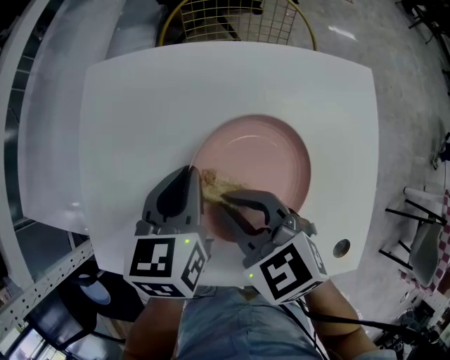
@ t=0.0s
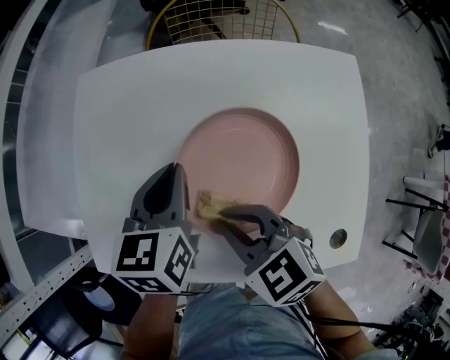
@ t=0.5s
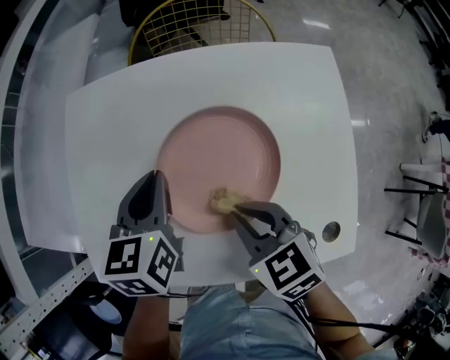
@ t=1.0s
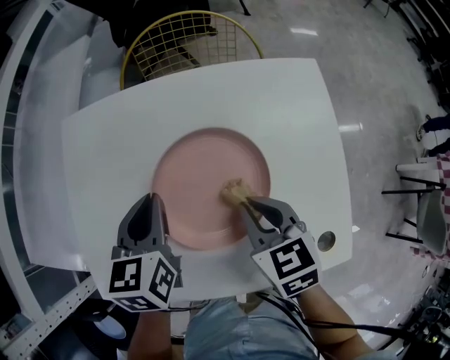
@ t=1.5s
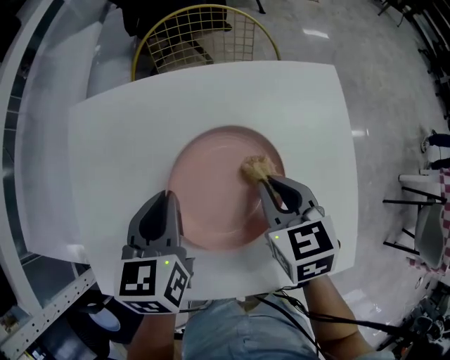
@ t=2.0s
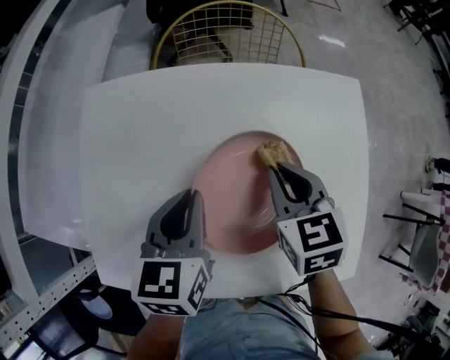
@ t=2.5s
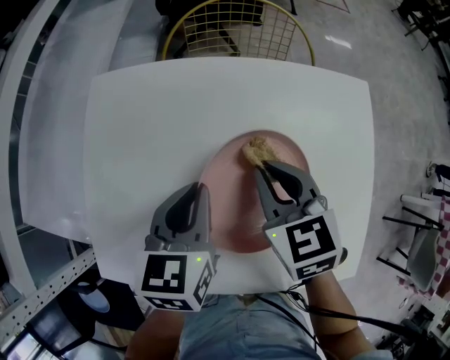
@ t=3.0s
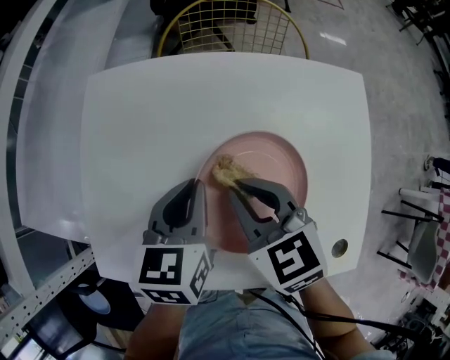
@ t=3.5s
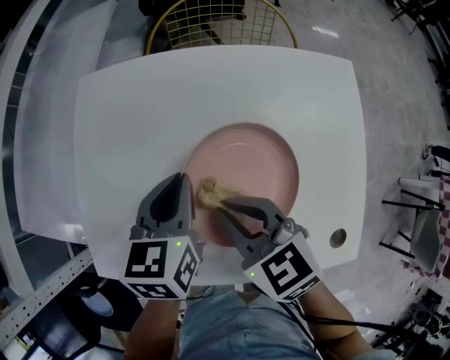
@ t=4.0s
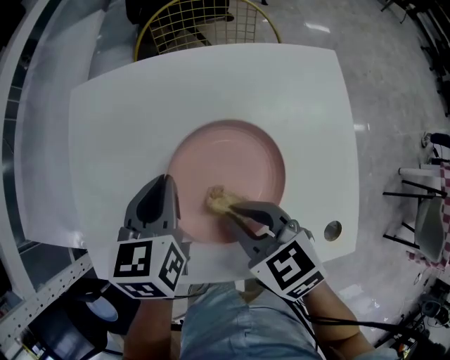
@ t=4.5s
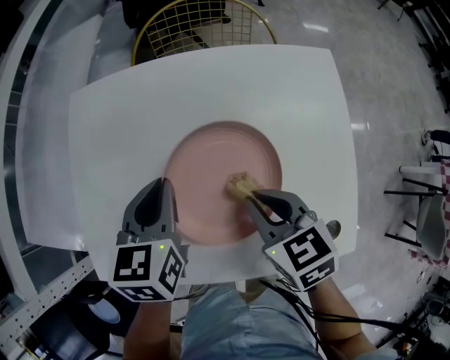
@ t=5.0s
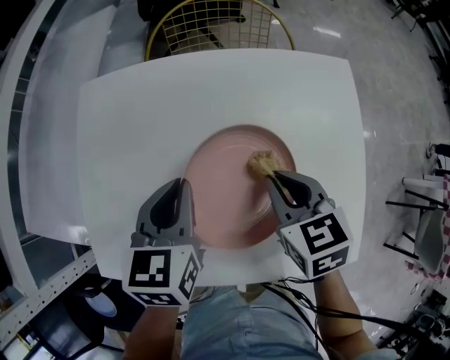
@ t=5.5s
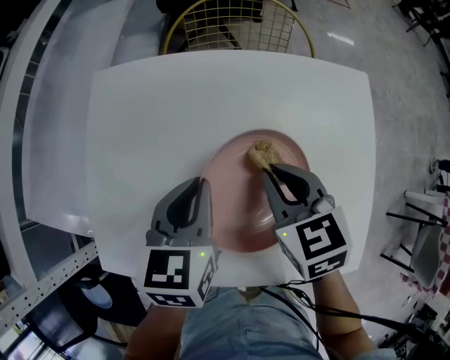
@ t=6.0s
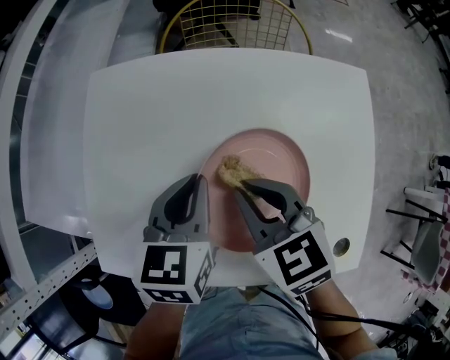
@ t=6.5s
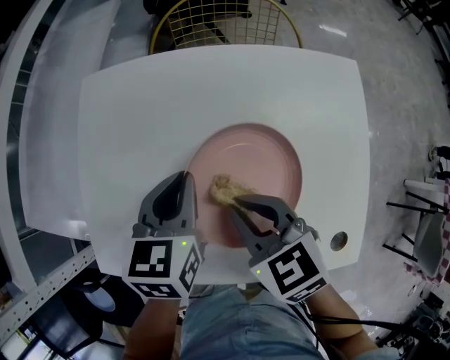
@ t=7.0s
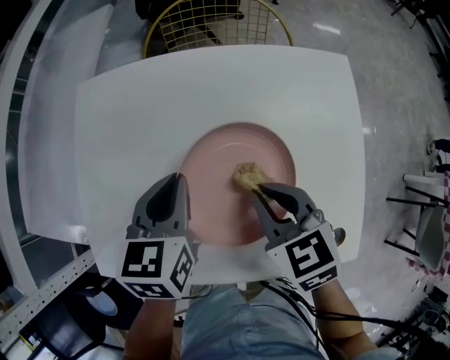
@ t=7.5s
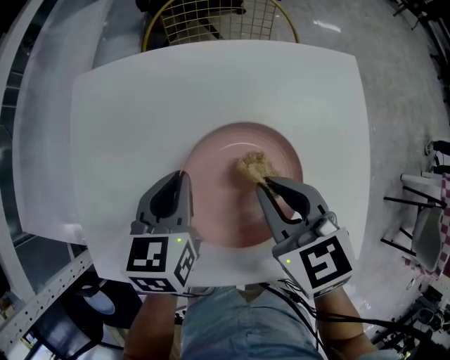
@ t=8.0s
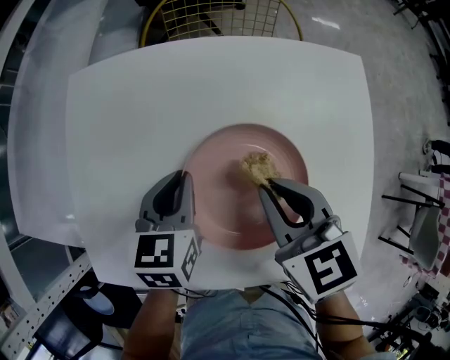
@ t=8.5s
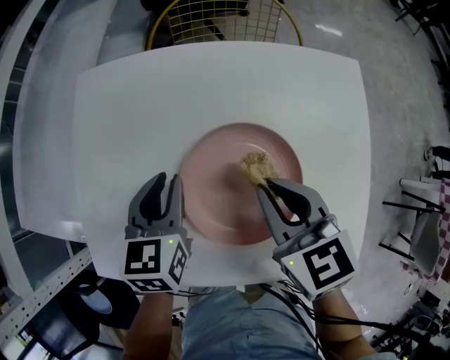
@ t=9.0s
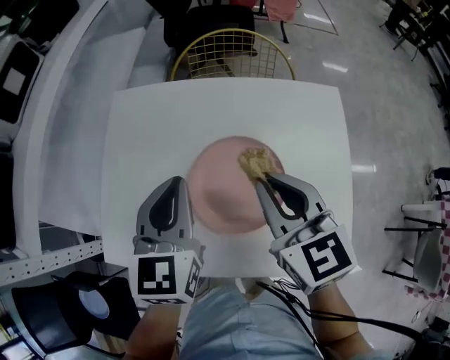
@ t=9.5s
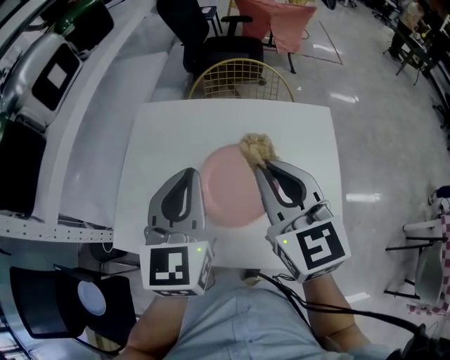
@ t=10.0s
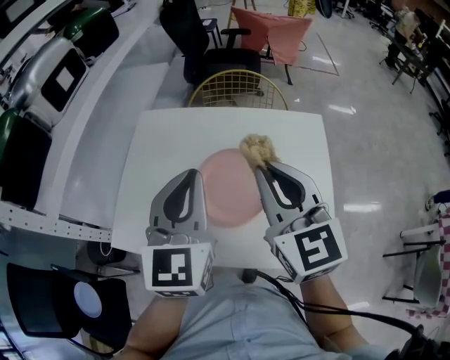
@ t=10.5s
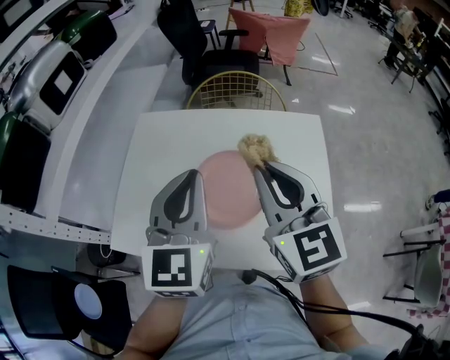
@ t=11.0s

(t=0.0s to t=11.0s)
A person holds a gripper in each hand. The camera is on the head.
t=0.0s - t=2.0s: The right gripper goes some 15 cm to the right, and swivels about 40 degrees.
t=2.0s - t=3.5s: The right gripper is displaced to the left by roughly 10 cm, and changes its angle by roughly 20 degrees.
t=3.5s - t=5.5s: The right gripper heads to the right, covering approximately 10 cm.
t=7.5s - t=9.0s: The left gripper shifts by roughly 5 cm.
t=9.0s - t=11.0s: The left gripper travels upward and backward by about 30 cm, and changes its angle by roughly 30 degrees; the right gripper is displaced upward by roughly 20 cm, and swivels roughly 30 degrees.

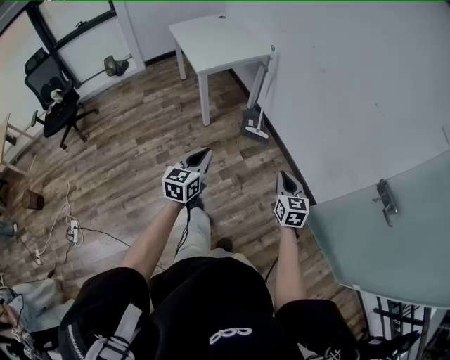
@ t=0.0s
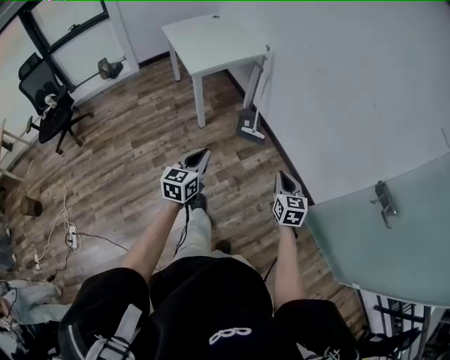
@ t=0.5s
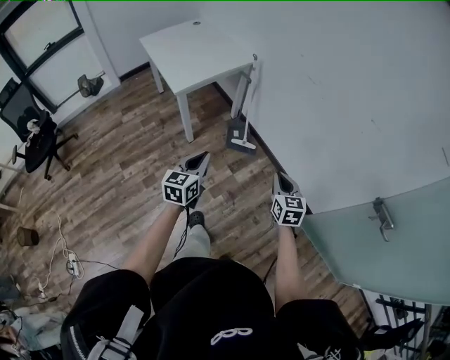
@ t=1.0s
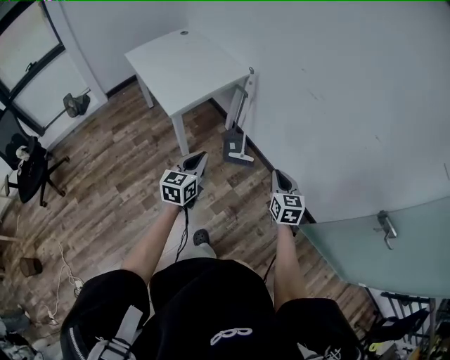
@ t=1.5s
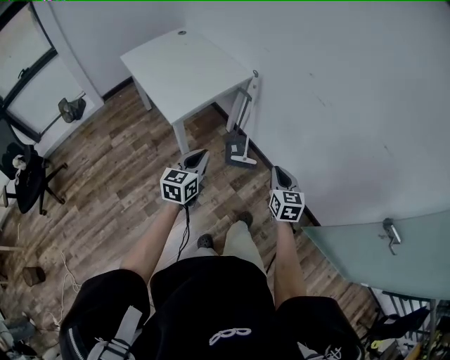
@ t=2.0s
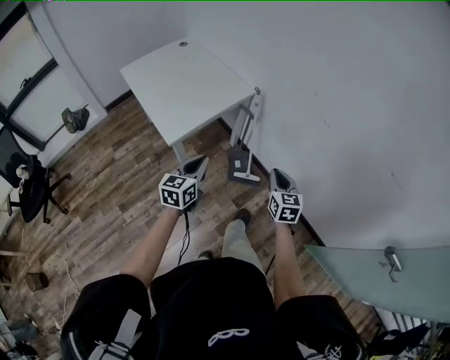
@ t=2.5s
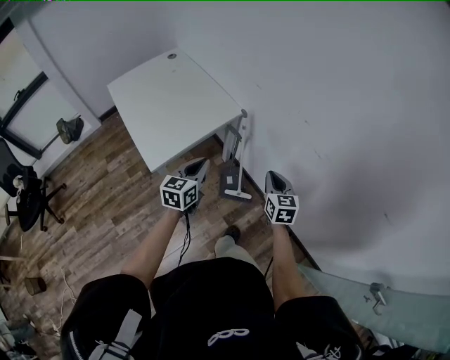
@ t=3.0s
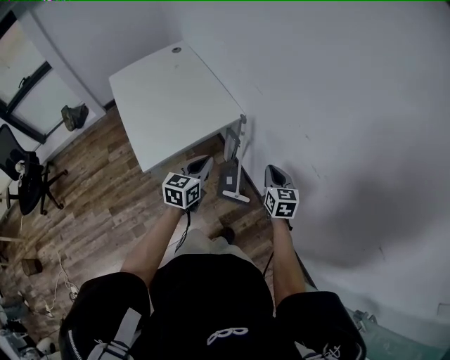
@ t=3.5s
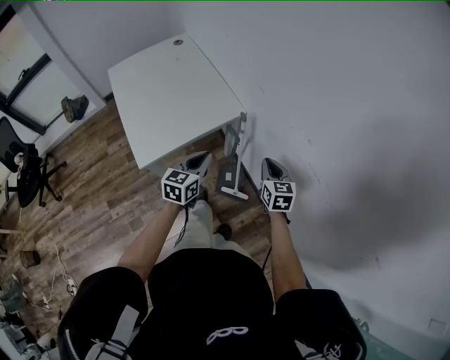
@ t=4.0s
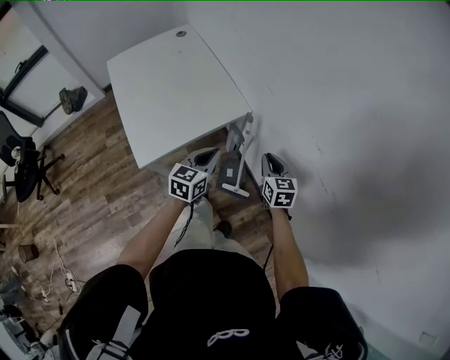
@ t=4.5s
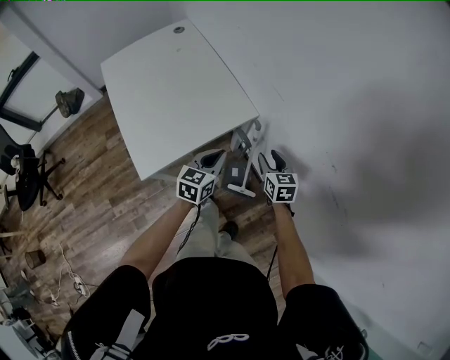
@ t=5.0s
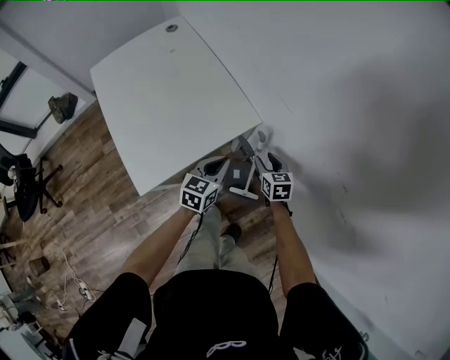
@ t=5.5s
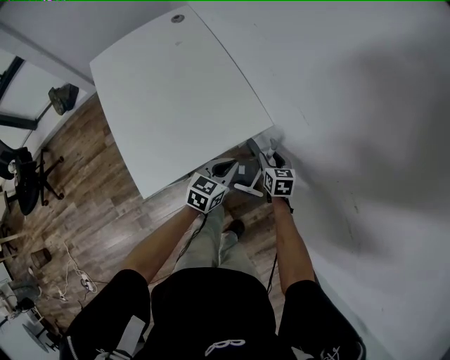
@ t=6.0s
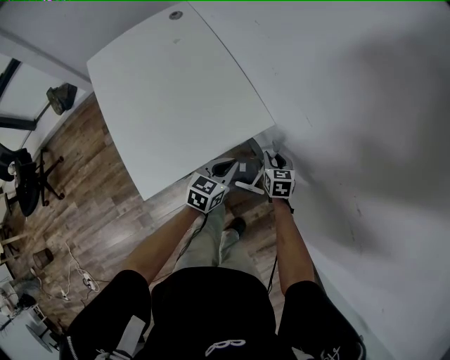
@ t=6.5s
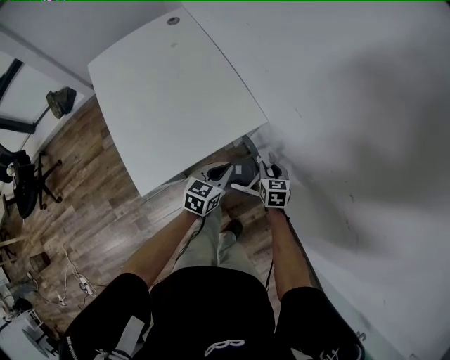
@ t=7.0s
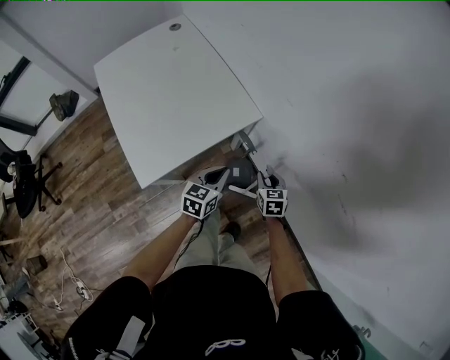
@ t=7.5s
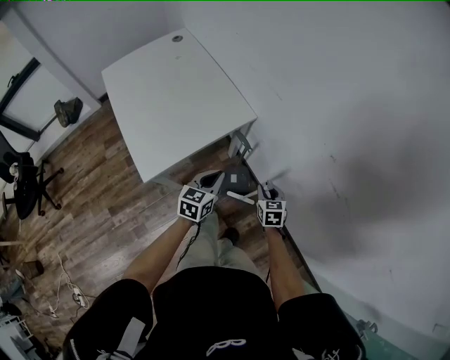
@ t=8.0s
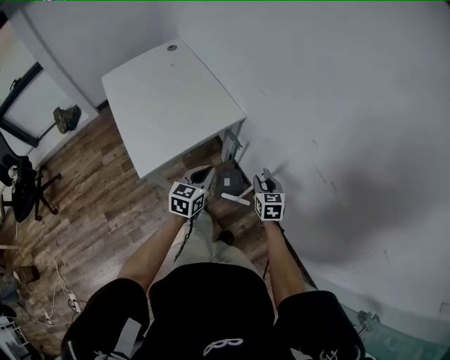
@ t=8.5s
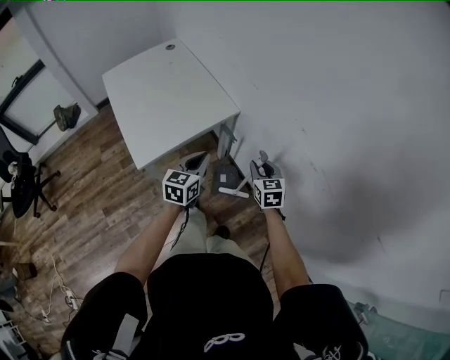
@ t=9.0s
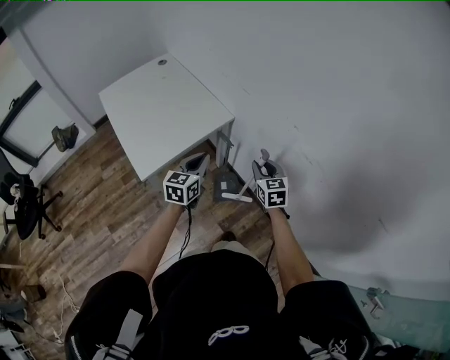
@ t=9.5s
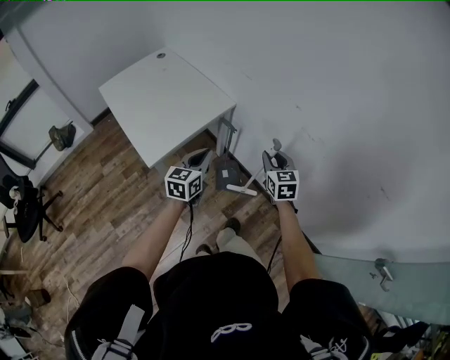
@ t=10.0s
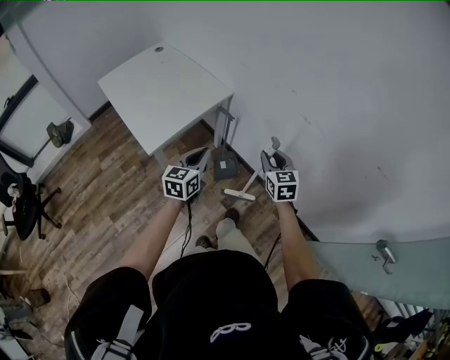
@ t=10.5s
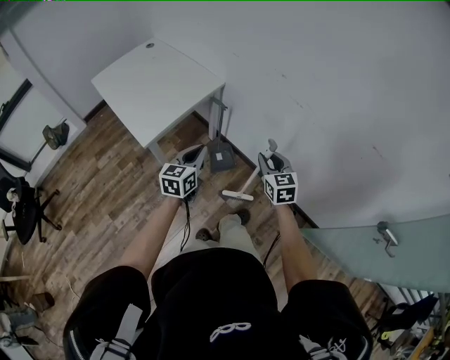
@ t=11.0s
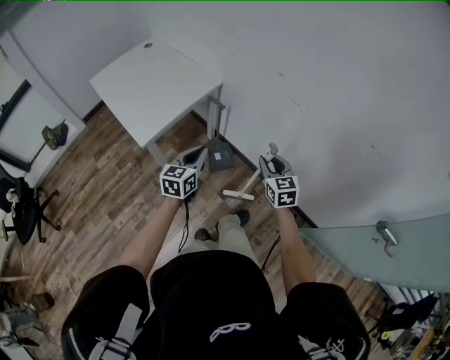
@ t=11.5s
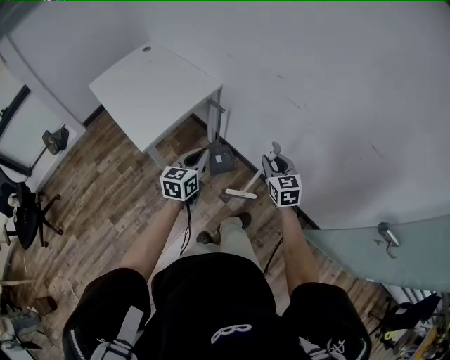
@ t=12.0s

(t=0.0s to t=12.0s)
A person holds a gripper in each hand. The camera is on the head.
t=0.0s - t=2.0s: The right gripper heads forward and to the left, covering about 35 cm. Meanwhile the left gripper goes about 40 cm forward.
t=2.0s - t=4.0s: The grippers both shift forward by approximately 40 cm.
t=4.0s - t=6.0s: The right gripper is displaced downward, forward and to the left by approximately 30 cm, and opens. Meanwhile the left gripper moves forward and downward, roughly 20 cm.
t=6.0s - t=8.0s: The left gripper is displaced backward by approximately 15 cm. Meanwhile the right gripper heads backward and to the right, covering about 20 cm.
t=8.0s - t=10.0s: The grippers both shift upward and backward by approximately 20 cm.
t=10.0s - t=12.0s: The left gripper goes about 10 cm backward, while the right gripper goes some 15 cm backward and to the right.

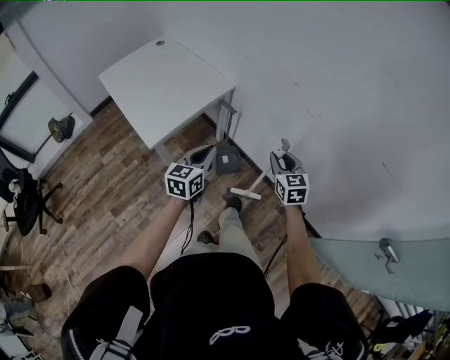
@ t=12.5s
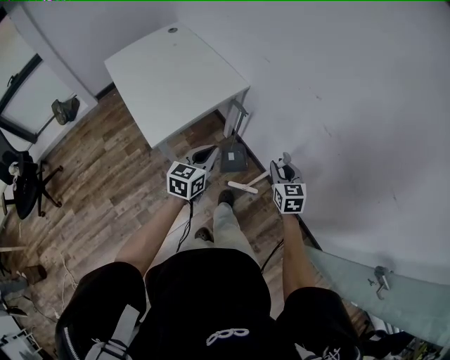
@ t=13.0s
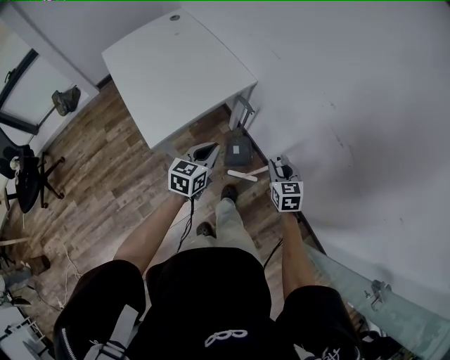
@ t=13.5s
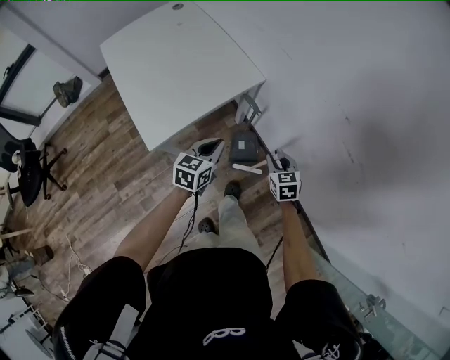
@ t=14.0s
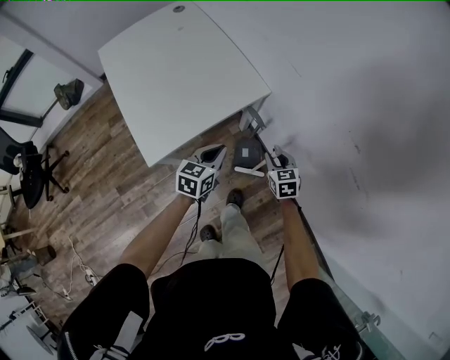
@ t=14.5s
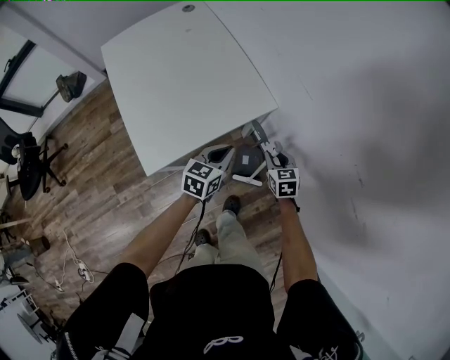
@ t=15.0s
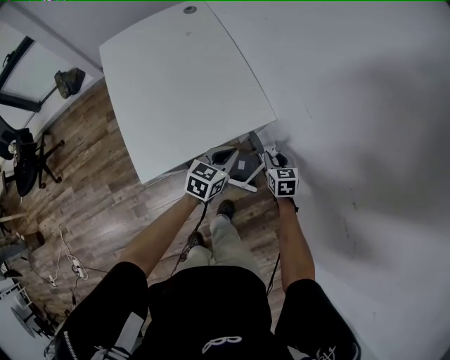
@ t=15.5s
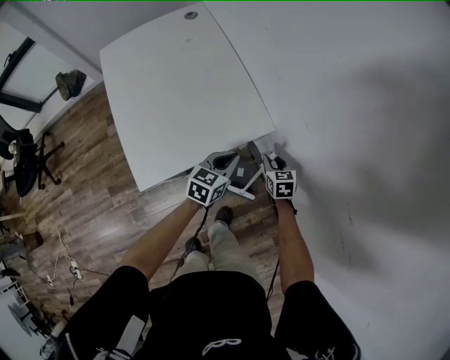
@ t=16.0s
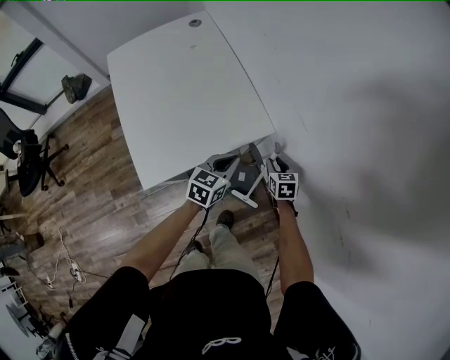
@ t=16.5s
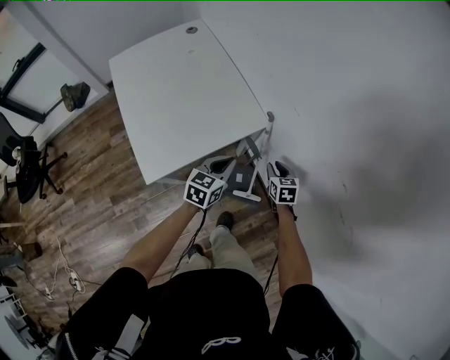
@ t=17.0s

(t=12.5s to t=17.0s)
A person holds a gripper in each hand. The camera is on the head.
t=12.5s - t=14.5s: The grippers both shift forward and downward by some 30 cm. The right gripper turns by some 20 degrees.
t=14.5s - t=17.0s: The two grippers go approximately 10 cm forward.
